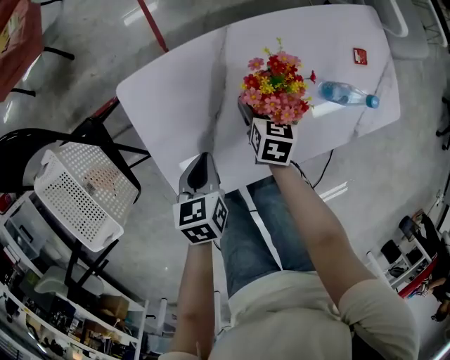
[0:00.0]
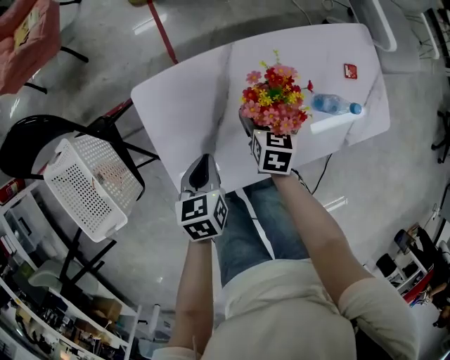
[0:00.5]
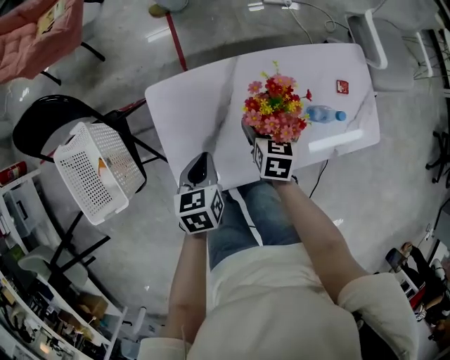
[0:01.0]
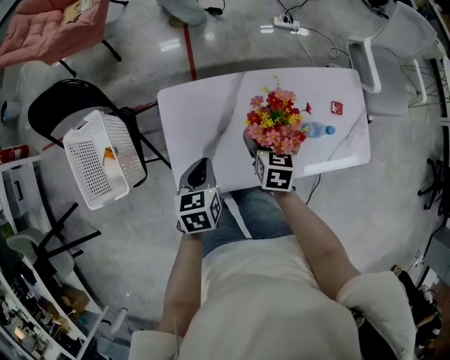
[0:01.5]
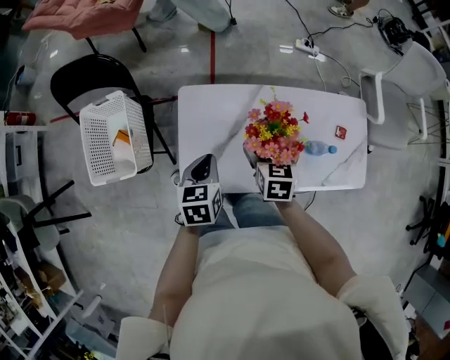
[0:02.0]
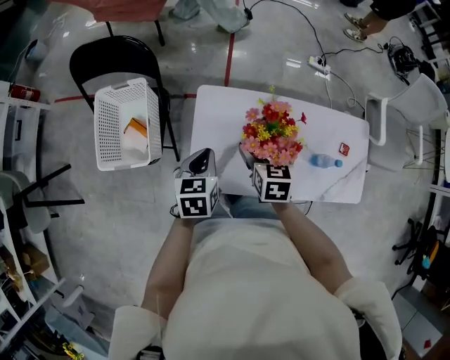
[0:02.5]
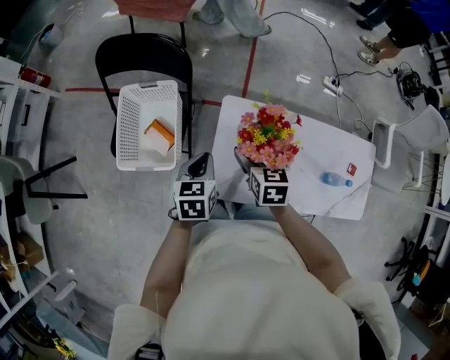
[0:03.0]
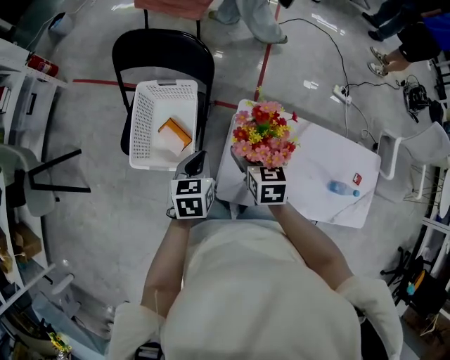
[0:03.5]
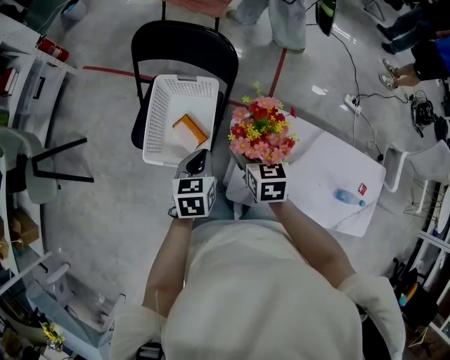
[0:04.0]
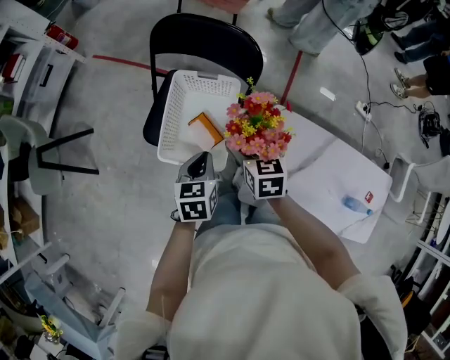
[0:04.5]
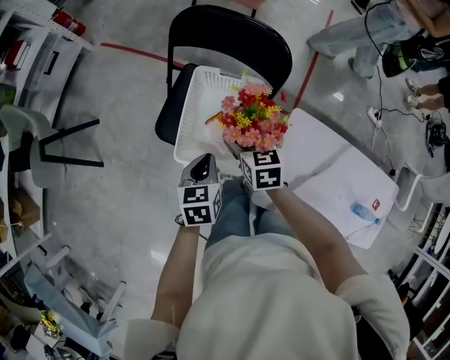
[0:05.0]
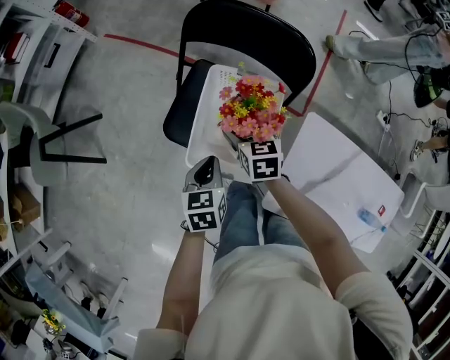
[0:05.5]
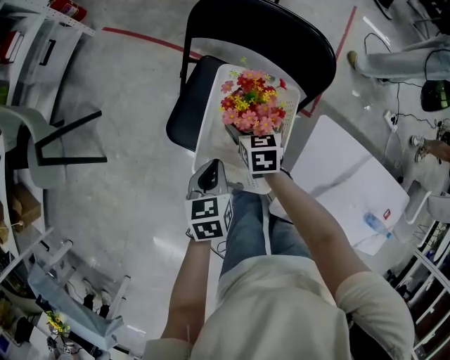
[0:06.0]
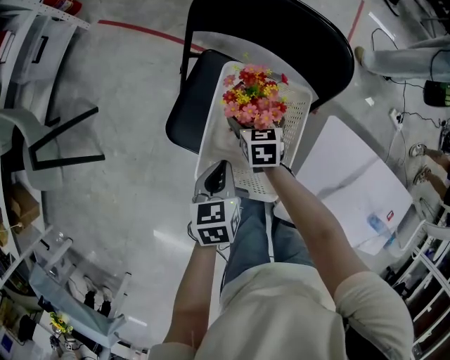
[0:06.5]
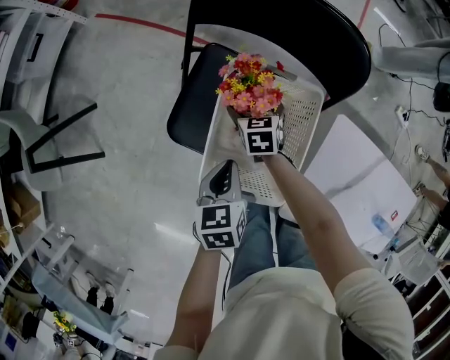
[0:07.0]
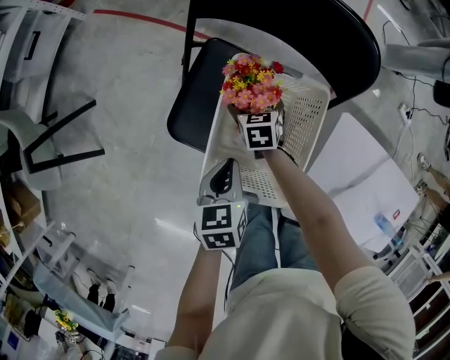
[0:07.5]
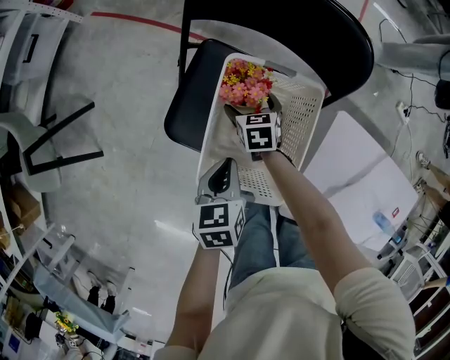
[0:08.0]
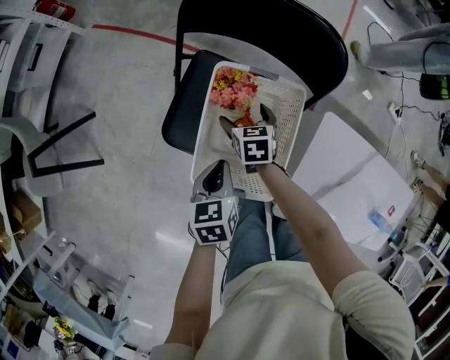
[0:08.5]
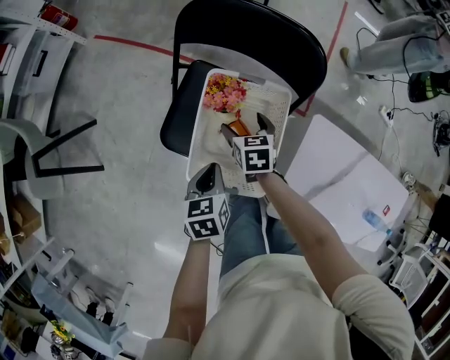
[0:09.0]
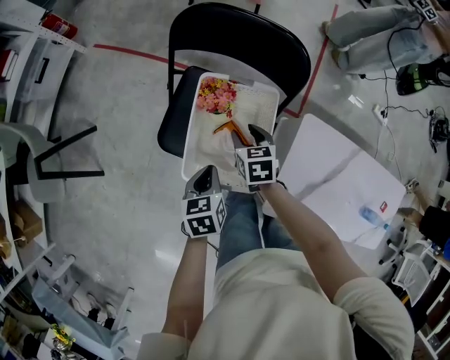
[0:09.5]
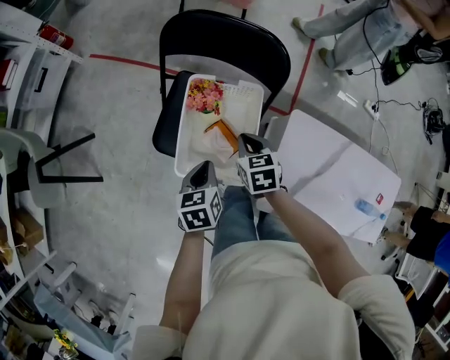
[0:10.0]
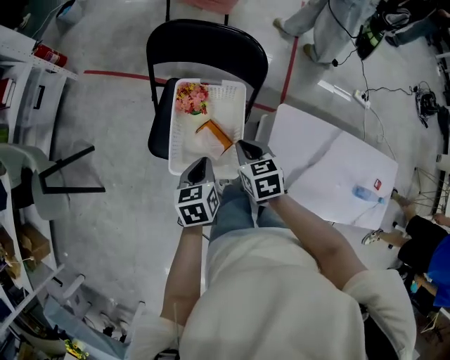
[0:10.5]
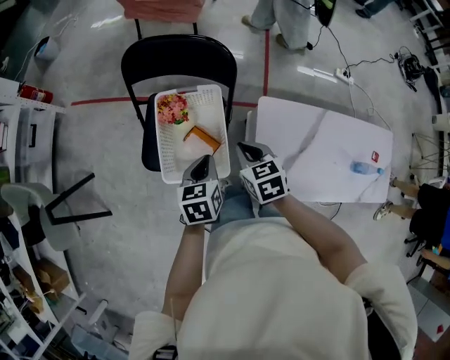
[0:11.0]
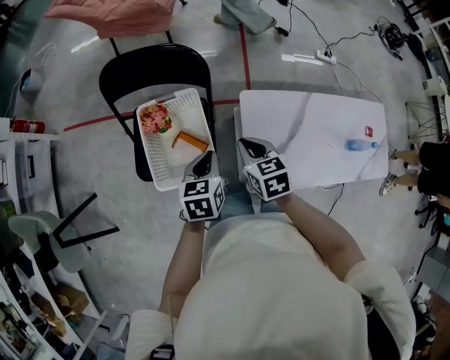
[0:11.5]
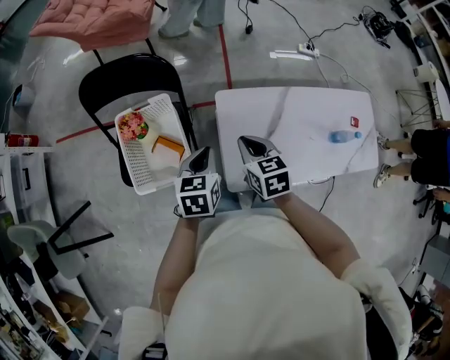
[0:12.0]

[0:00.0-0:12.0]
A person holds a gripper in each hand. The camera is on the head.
0:00.0 to 0:02.0: The grippers both shift upward by about 20 cm. The right gripper changes its angle by roughly 30 degrees.
0:02.0 to 0:04.0: The two grippers go some 35 cm to the left. The right gripper changes its angle by some 20 degrees.
0:04.0 to 0:06.0: The left gripper is displaced to the left and downward by approximately 20 cm; the right gripper goes roughly 30 cm to the left, forward and downward.
0:06.0 to 0:08.0: The left gripper shifts about 5 cm downward; the right gripper goes approximately 10 cm downward.
0:08.0 to 0:10.0: The left gripper moves upward, some 5 cm; the right gripper heads upward, backward and to the right, covering roughly 25 cm, and closes.
0:10.0 to 0:12.0: The left gripper heads to the right, covering some 25 cm, and changes its angle by roughly 30 degrees, while the right gripper moves to the right, backward and upward, about 30 cm, and turns by some 20 degrees.

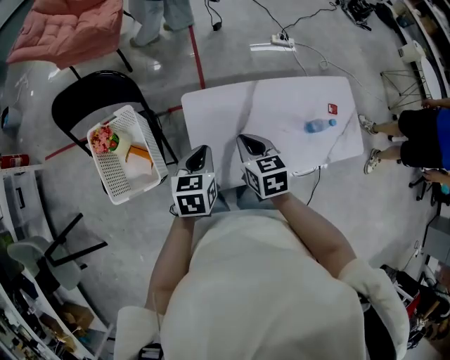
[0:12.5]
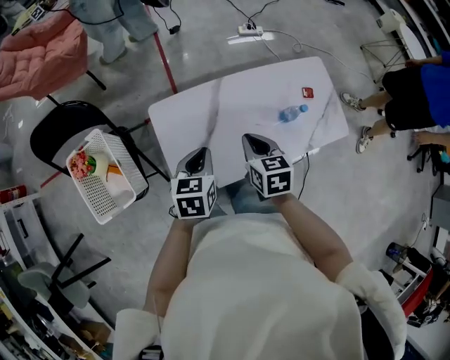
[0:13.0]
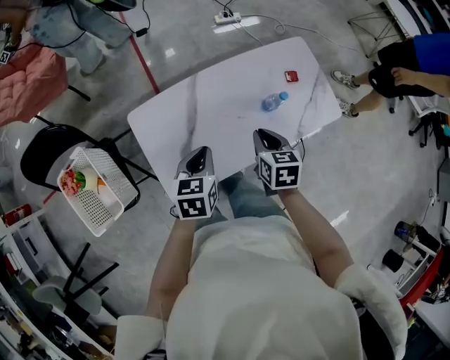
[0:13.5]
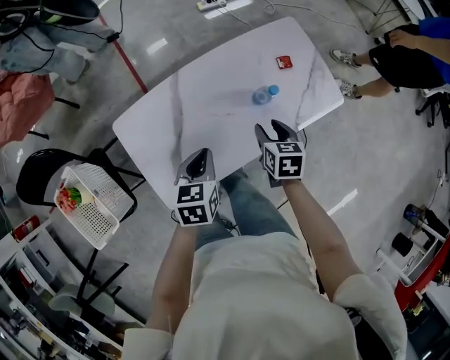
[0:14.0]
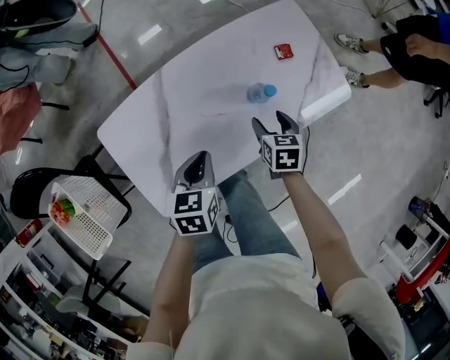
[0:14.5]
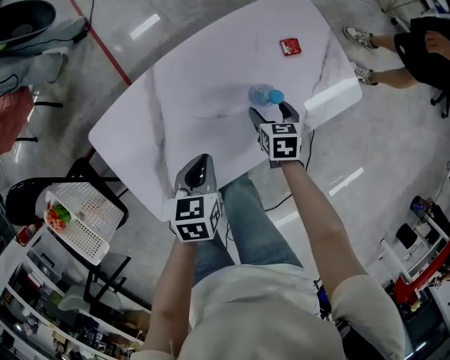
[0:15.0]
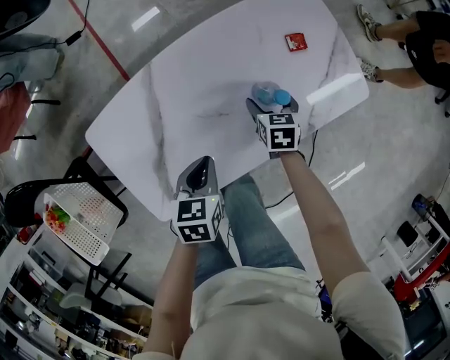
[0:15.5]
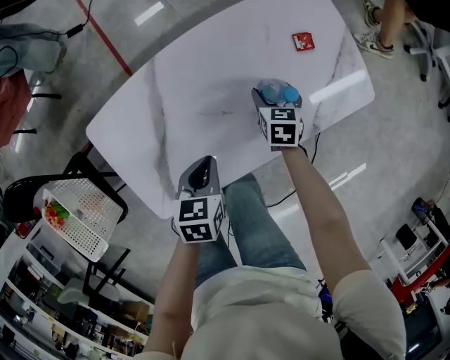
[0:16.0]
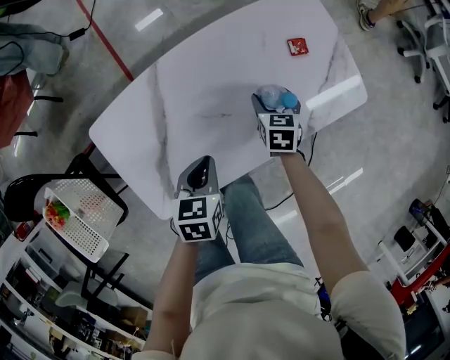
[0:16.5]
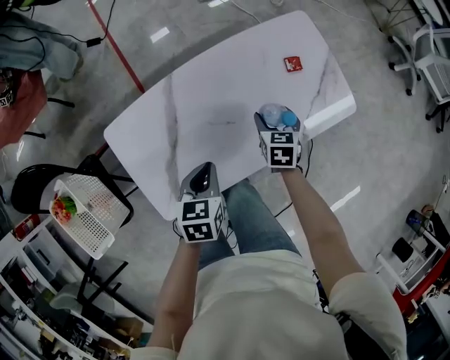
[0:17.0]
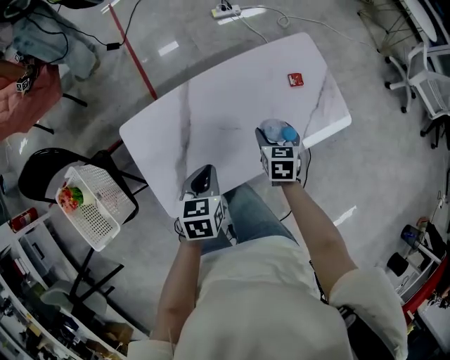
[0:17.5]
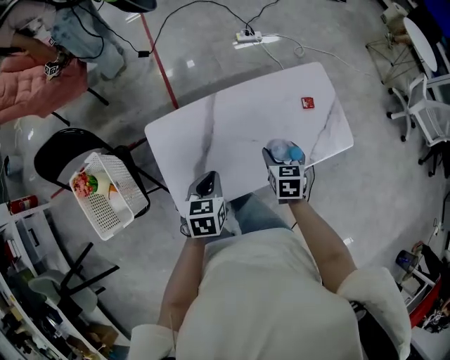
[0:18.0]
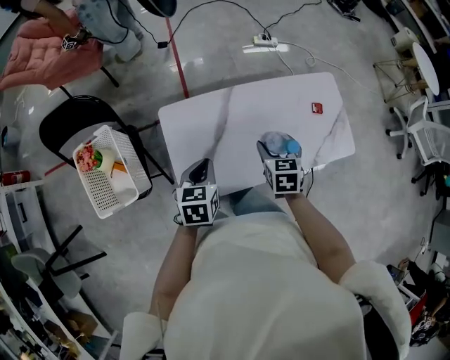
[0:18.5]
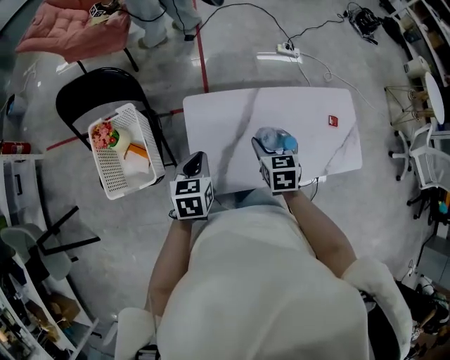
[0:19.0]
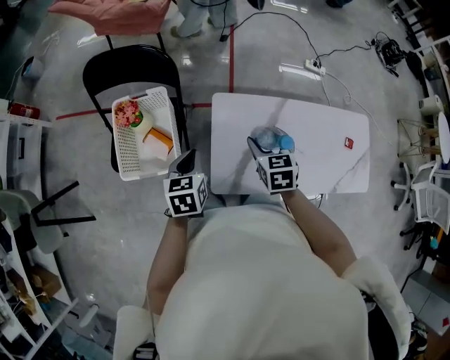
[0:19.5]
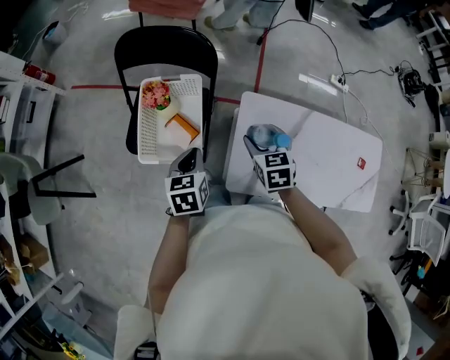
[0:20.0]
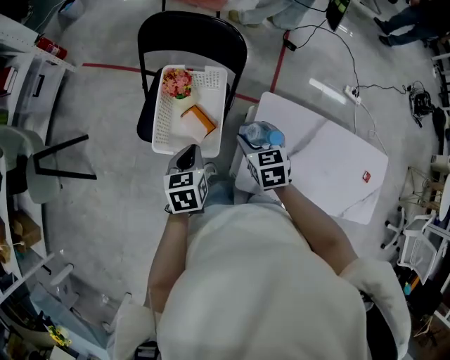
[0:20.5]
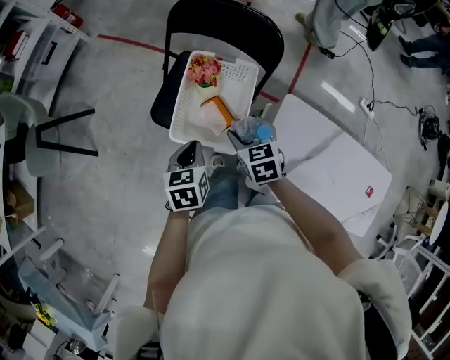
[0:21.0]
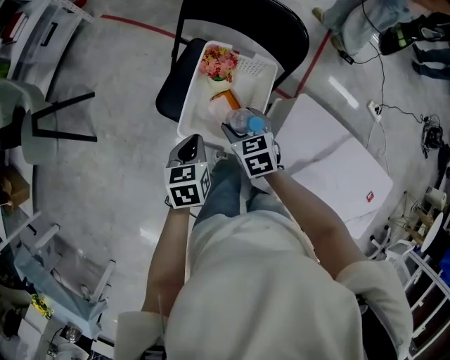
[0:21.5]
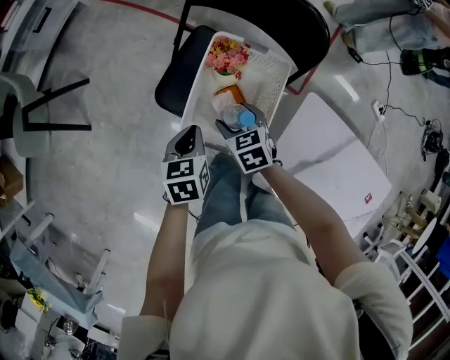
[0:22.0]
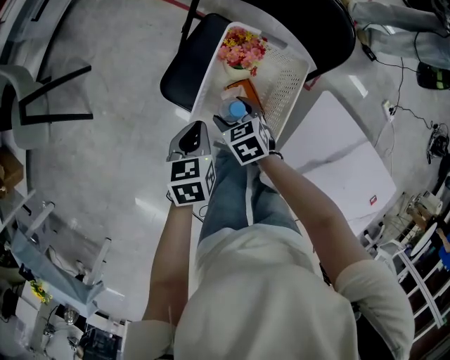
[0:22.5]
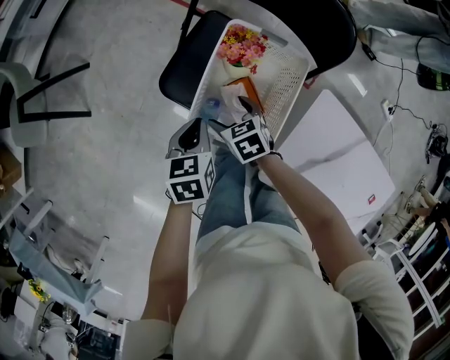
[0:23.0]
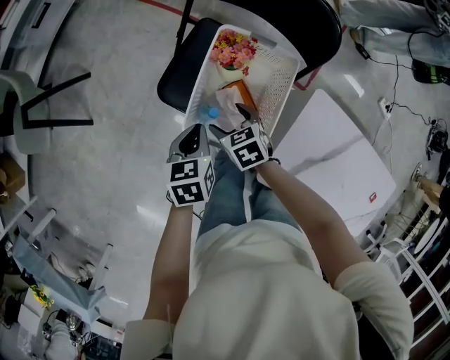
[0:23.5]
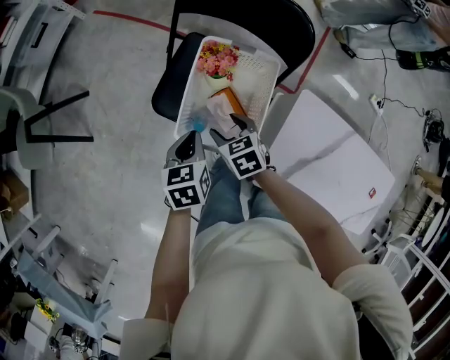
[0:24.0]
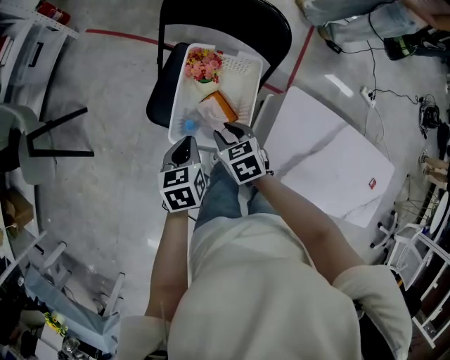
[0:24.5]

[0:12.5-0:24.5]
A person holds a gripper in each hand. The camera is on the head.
0:12.5 to 0:14.5: The left gripper moves approximately 35 cm, and turns by roughly 20 degrees. The right gripper shifts by roughly 50 cm, turns by roughly 30 degrees, and opens.
0:14.5 to 0:16.5: The left gripper is displaced downward by roughly 5 cm. The right gripper goes some 10 cm forward and downward.
0:16.5 to 0:18.5: The left gripper shifts some 25 cm to the left, upward and backward, and rotates some 20 degrees. The right gripper shifts approximately 35 cm upward, to the left and backward, and turns by about 20 degrees.
0:18.5 to 0:20.5: The left gripper changes place by approximately 40 cm, and swivels roughly 40 degrees, while the right gripper moves some 50 cm, and changes its angle by approximately 40 degrees.
0:20.5 to 0:22.5: The right gripper heads to the left, downward and forward, covering some 30 cm, and swivels roughly 30 degrees. Meanwhile the left gripper shifts some 20 cm to the left, downward and forward.
0:22.5 to 0:24.5: The right gripper goes about 10 cm upward and backward, and closes. The left gripper shifts some 5 cm upward.

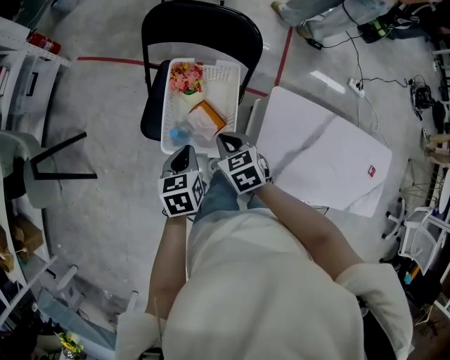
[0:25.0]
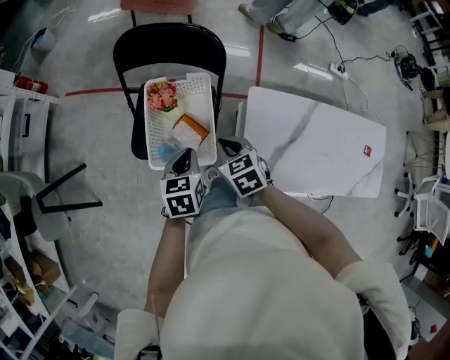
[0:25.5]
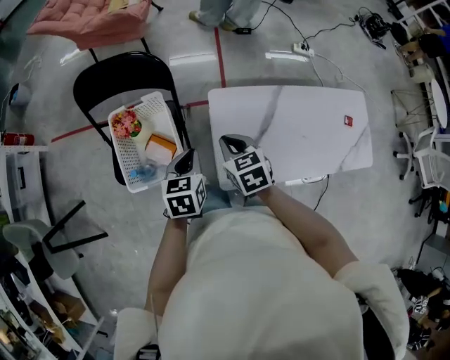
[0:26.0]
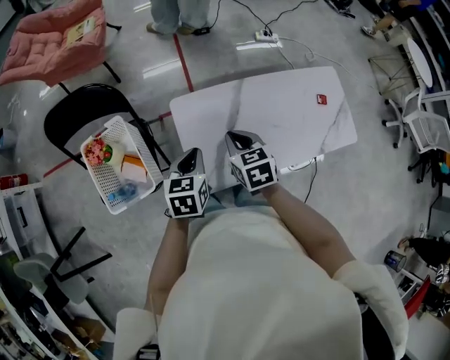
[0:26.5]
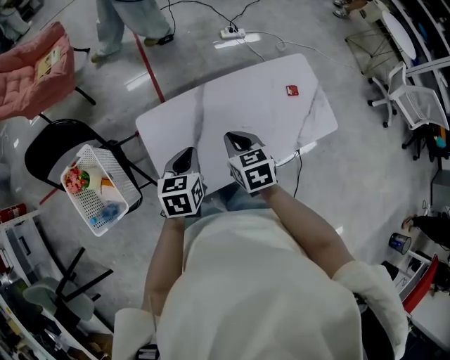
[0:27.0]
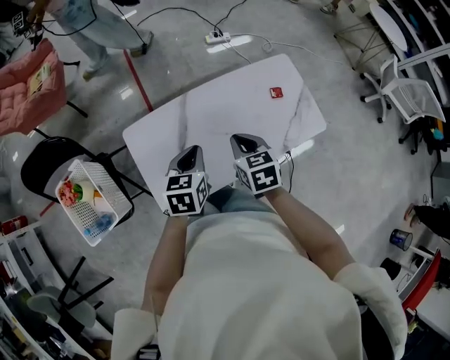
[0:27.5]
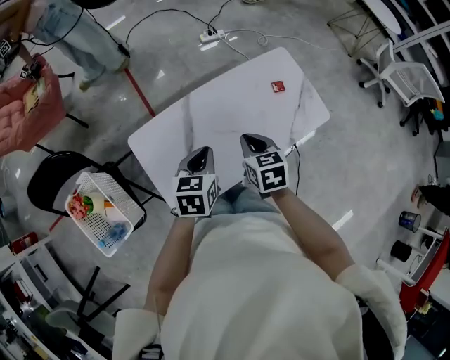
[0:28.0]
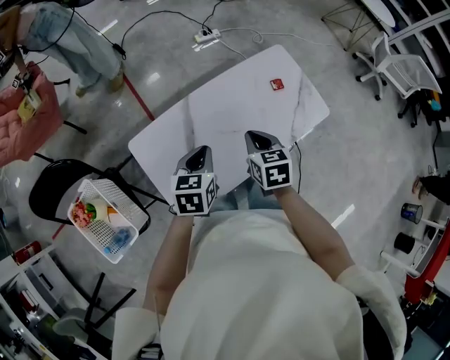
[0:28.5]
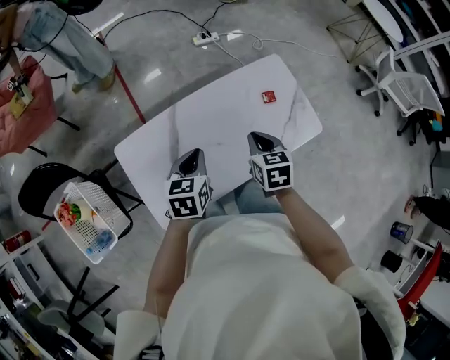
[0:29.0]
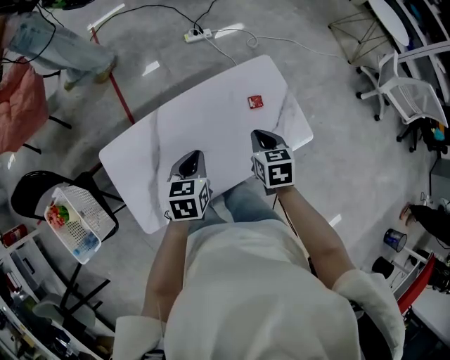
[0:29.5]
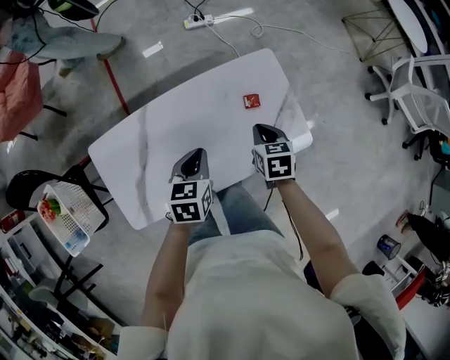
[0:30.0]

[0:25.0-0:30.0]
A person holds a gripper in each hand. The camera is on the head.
0:25.0 to 0:27.5: Both grippers are carried some 60 cm. The left gripper rotates roughly 50 degrees. Meanwhile the right gripper turns by roughly 50 degrees.
0:27.5 to 0:30.0: The two grippers go approximately 30 cm to the right, forward and downward.
